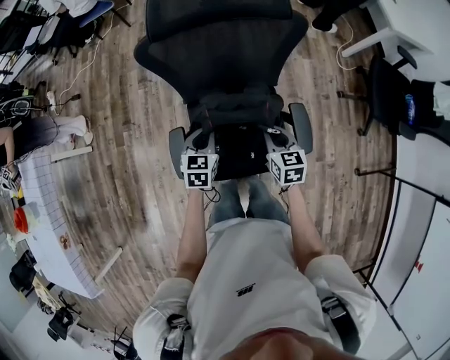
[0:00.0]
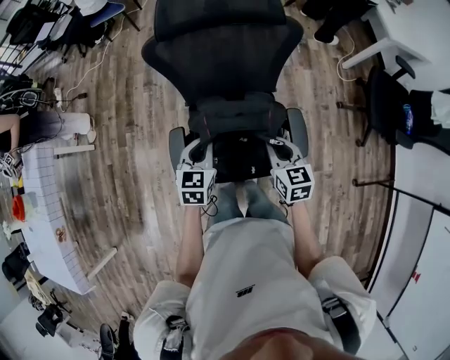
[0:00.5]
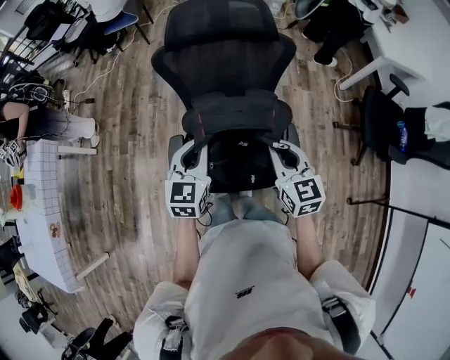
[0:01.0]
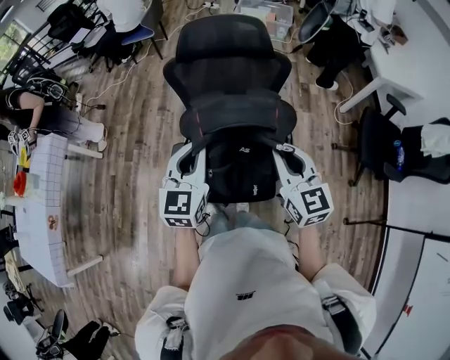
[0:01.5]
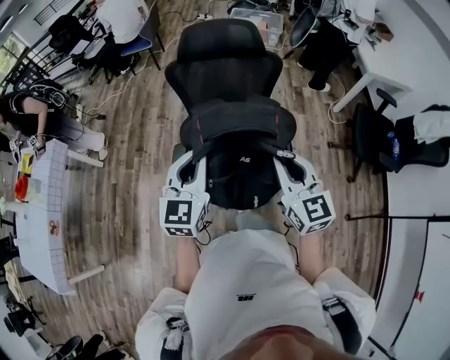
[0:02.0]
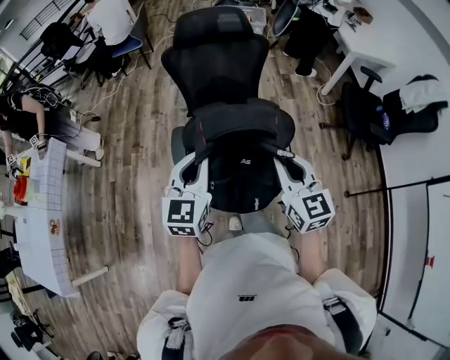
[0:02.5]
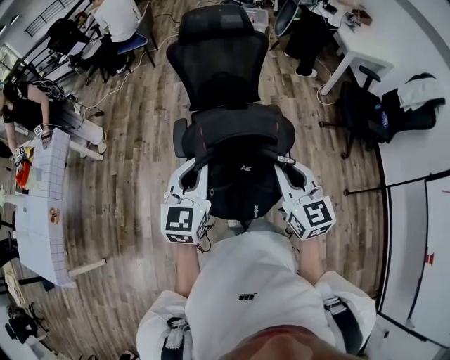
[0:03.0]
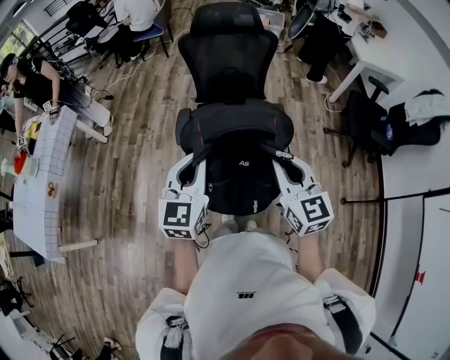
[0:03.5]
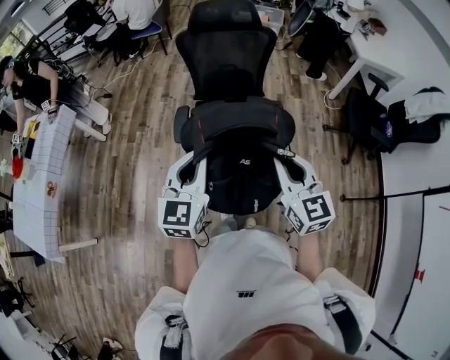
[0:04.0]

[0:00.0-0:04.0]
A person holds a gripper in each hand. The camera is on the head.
0:00.0 to 0:02.0: Both grippers travel together upward and backward, roughly 40 cm. The right gripper tilts its fingers about 30 degrees upward. Meanwhile the left gripper swivels some 30 degrees.
0:02.0 to 0:04.0: The two grippers go roughly 25 cm backward.

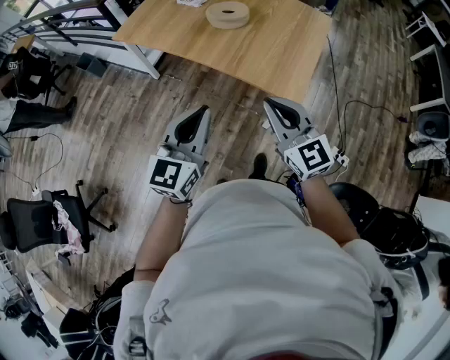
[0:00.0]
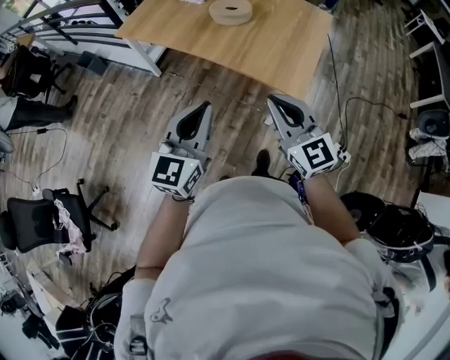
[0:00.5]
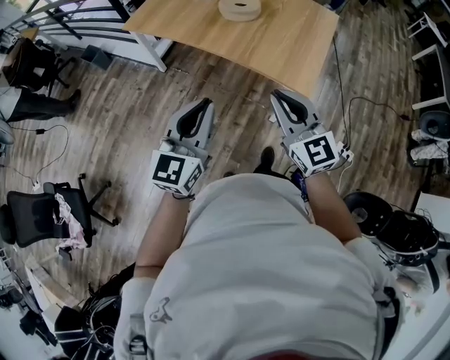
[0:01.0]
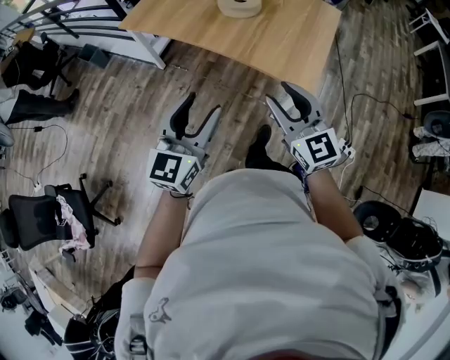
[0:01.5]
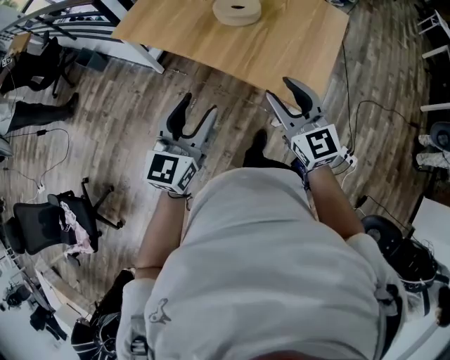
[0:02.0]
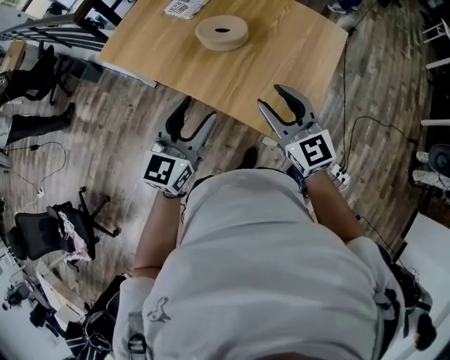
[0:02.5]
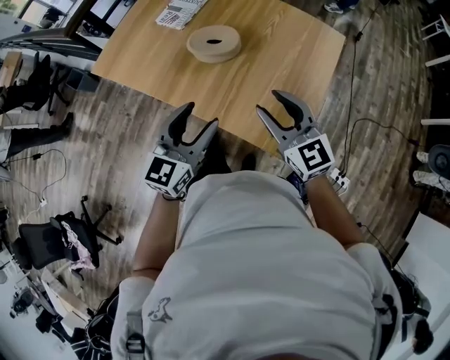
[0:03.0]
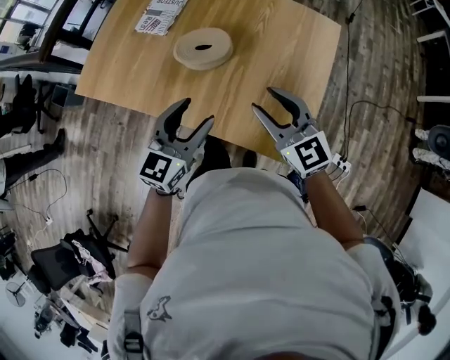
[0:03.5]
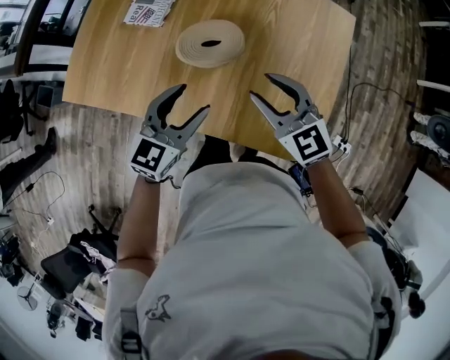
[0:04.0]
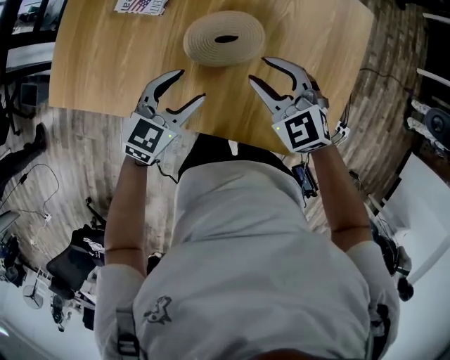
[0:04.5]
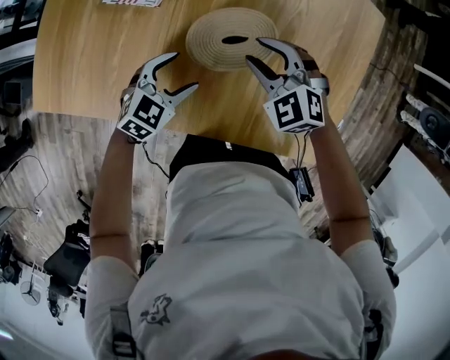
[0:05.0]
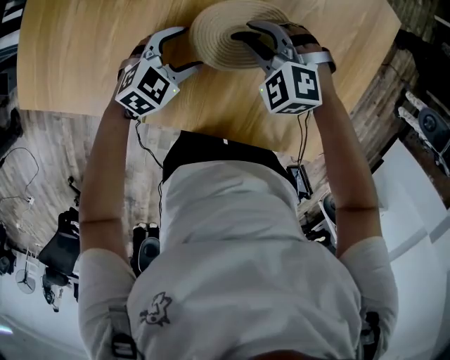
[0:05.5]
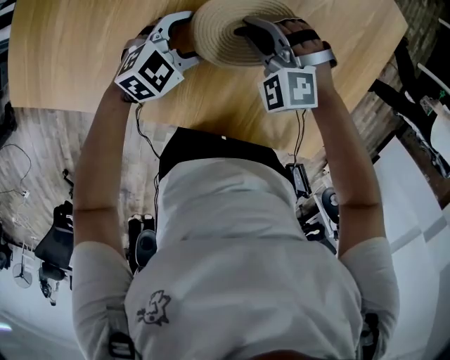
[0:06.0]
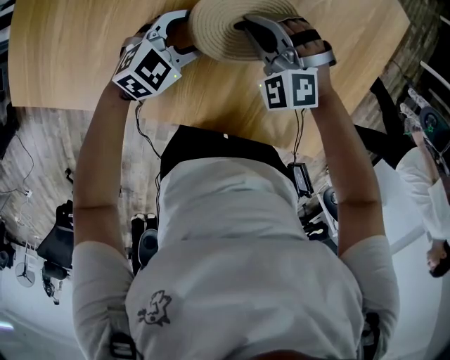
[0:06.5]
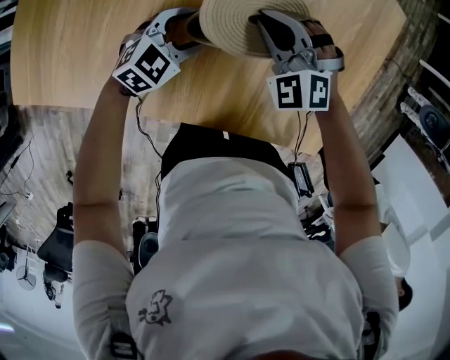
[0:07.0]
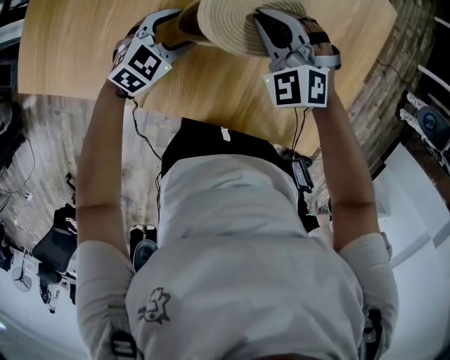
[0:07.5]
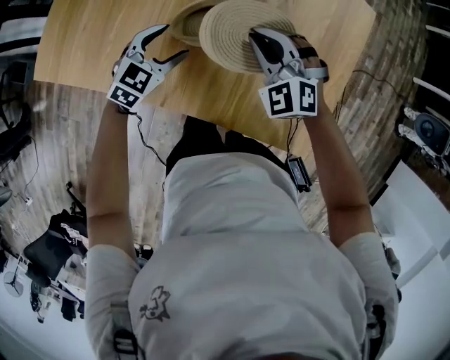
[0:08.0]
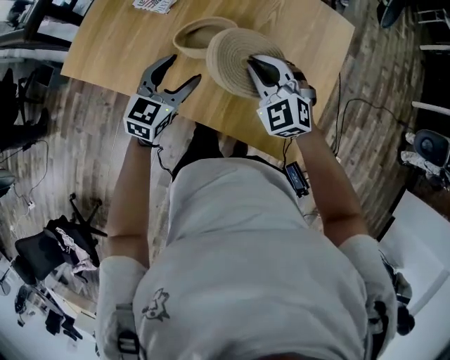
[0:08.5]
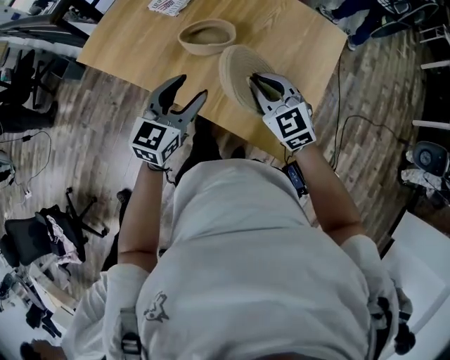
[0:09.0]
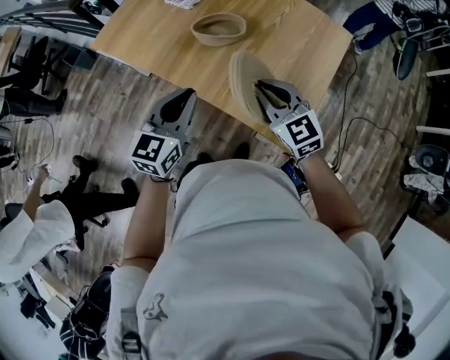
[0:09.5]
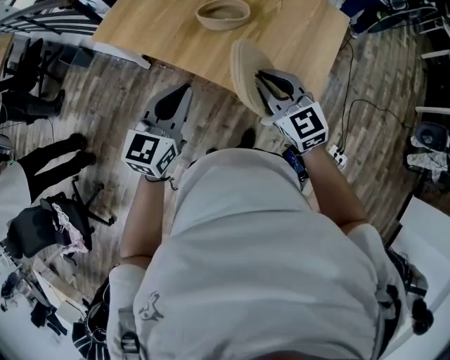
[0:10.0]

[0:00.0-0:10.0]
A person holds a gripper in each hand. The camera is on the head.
0:00.0 to 0:02.0: Both grippers travel together forward, approximately 10 cm. The right gripper opens, while the left gripper opens its fingers.
0:02.0 to 0:04.0: Both grippers move forward, some 35 cm. The left gripper changes its angle by some 30 degrees.
0:04.0 to 0:06.0: The left gripper shifts some 30 cm downward and forward, and turns by about 30 degrees; the right gripper heads downward, forward and to the left, covering some 30 cm, twists roughly 50 degrees counterclockwise, seen from behind, and closes its fingers.
0:06.0 to 0:08.0: The right gripper travels upward and to the right by approximately 15 cm, and rotates some 20 degrees, while the left gripper is displaced upward and backward by roughly 10 cm.
0:08.0 to 0:10.0: The grippers both shift backward and upward by about 40 cm. The right gripper changes its angle by about 40 degrees. Meanwhile the left gripper changes its angle by about 40 degrees, and closes up.

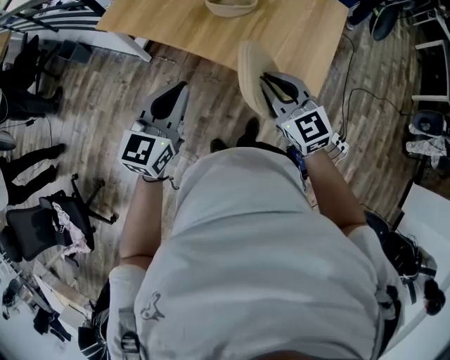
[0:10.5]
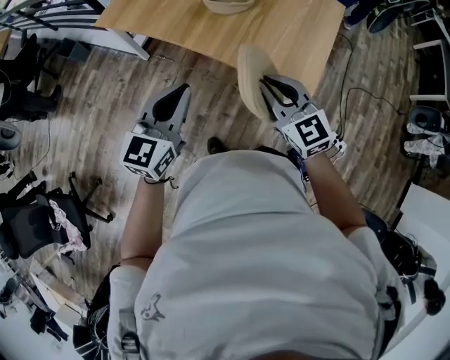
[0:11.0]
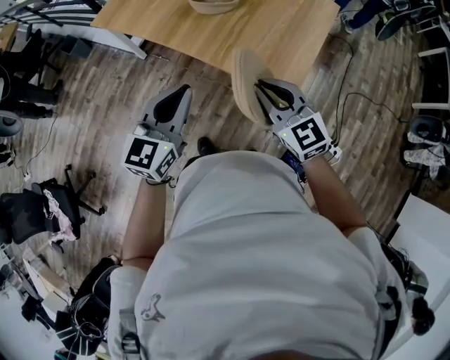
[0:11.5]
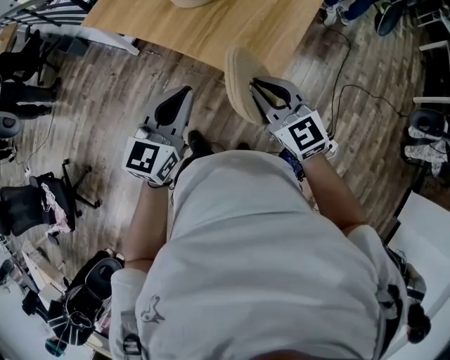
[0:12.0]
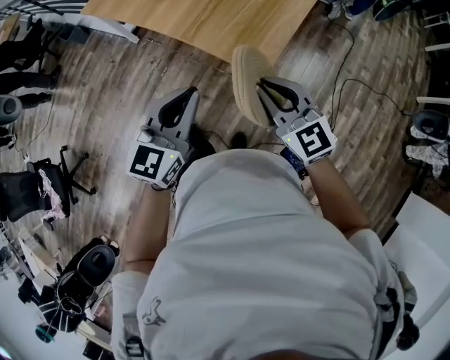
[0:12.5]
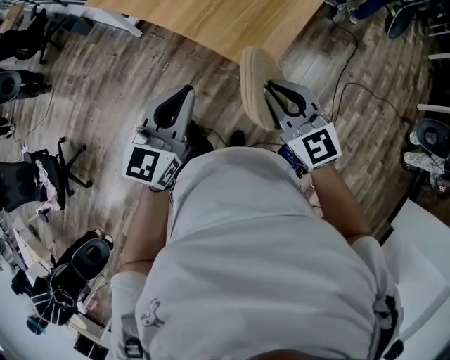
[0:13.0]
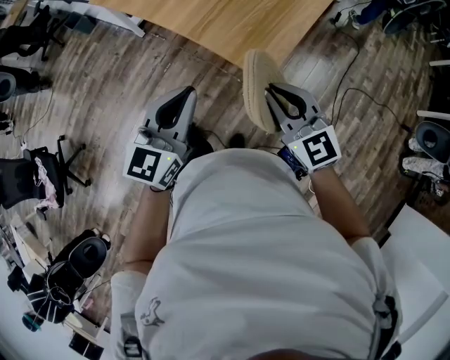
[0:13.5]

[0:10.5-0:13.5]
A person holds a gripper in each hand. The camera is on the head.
0:10.5 to 0:12.0: Both grippers move to the right and backward, approximately 25 cm.
0:12.0 to 0:13.5: The right gripper shifts about 10 cm backward and to the right, while the left gripper is displaced backward by roughly 5 cm.

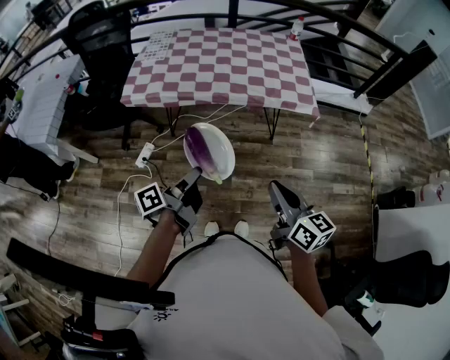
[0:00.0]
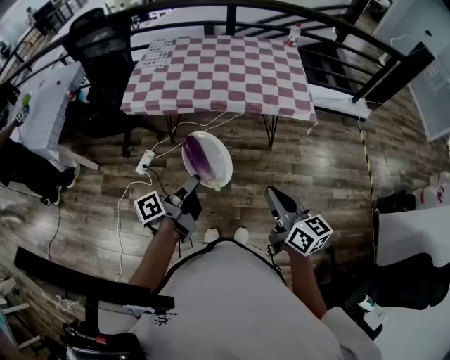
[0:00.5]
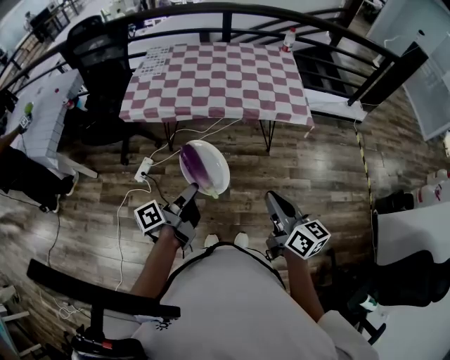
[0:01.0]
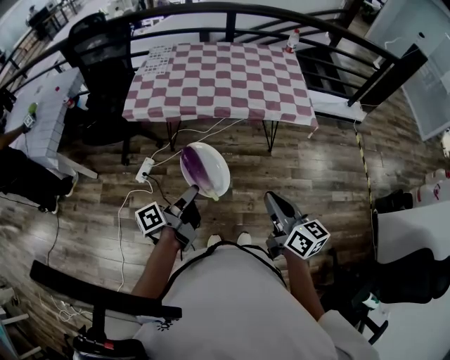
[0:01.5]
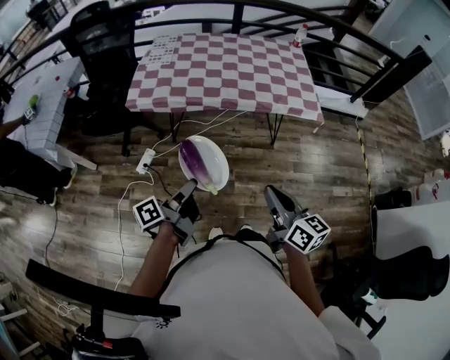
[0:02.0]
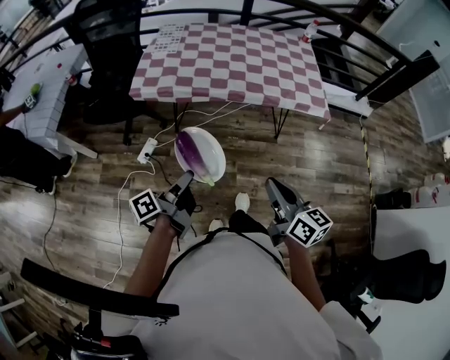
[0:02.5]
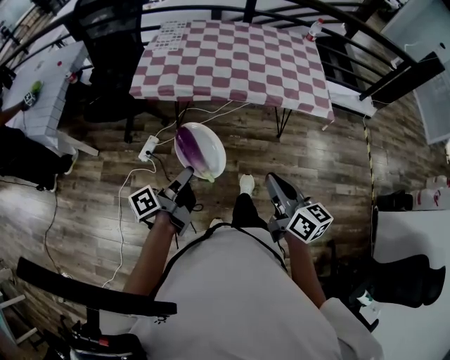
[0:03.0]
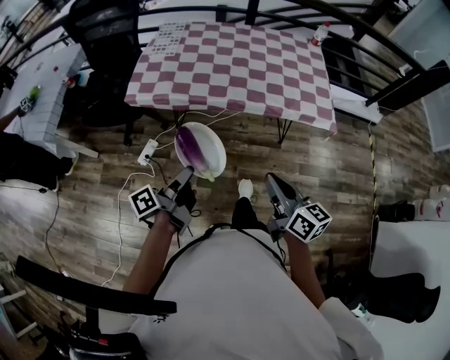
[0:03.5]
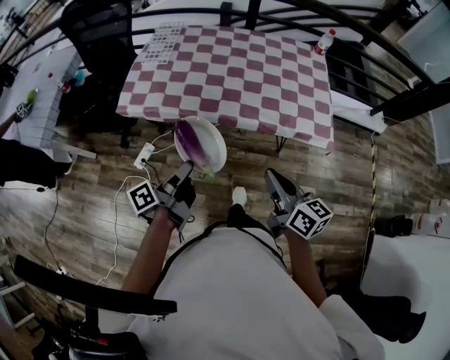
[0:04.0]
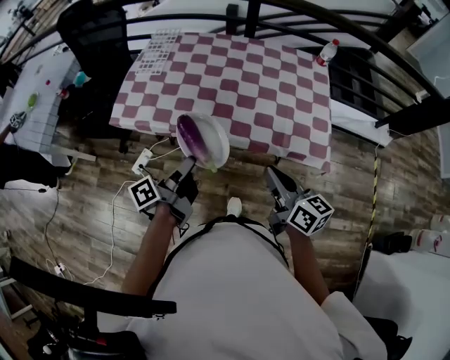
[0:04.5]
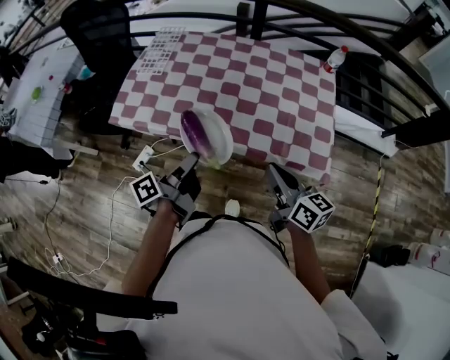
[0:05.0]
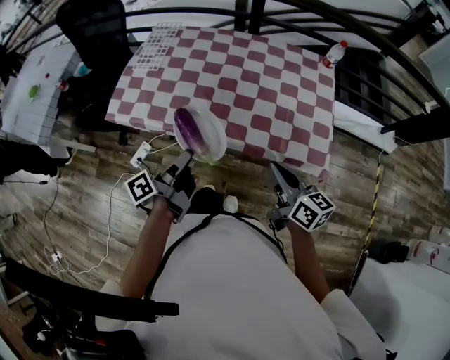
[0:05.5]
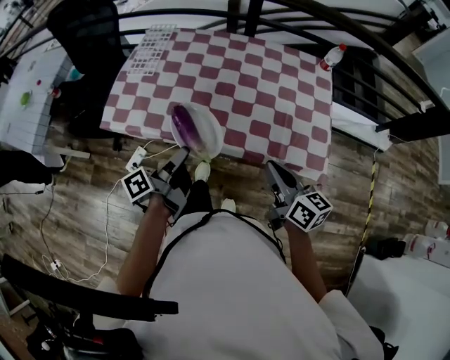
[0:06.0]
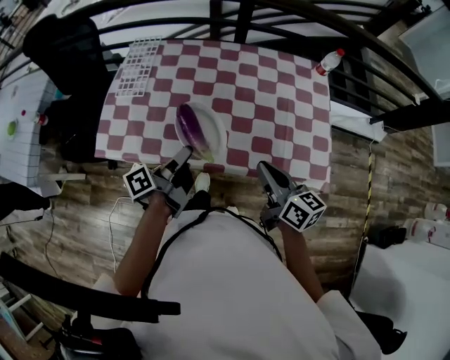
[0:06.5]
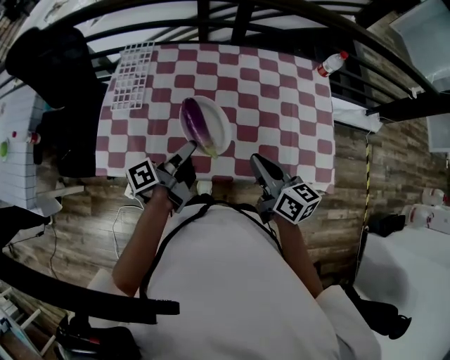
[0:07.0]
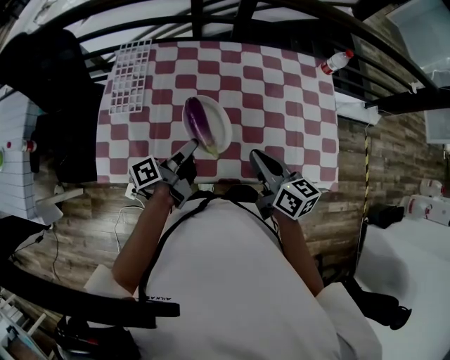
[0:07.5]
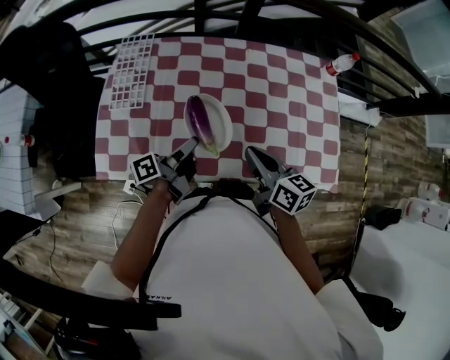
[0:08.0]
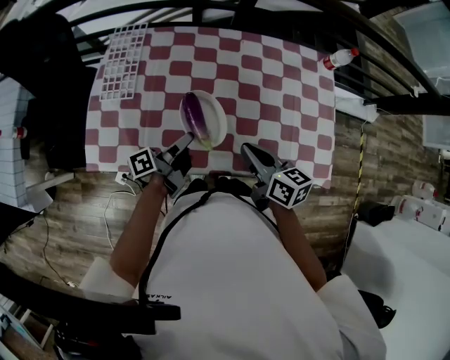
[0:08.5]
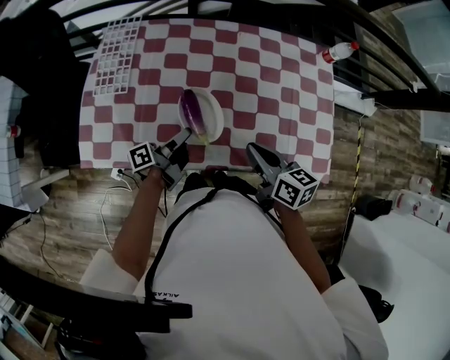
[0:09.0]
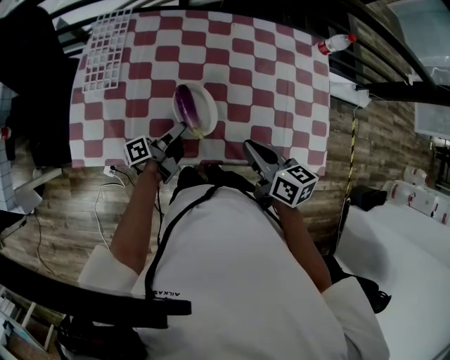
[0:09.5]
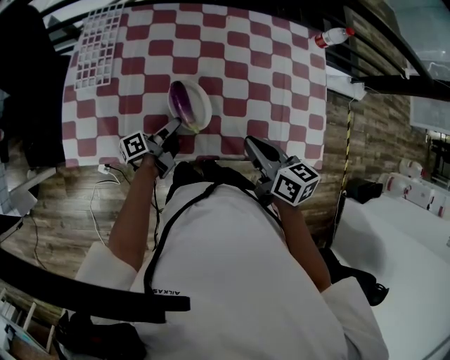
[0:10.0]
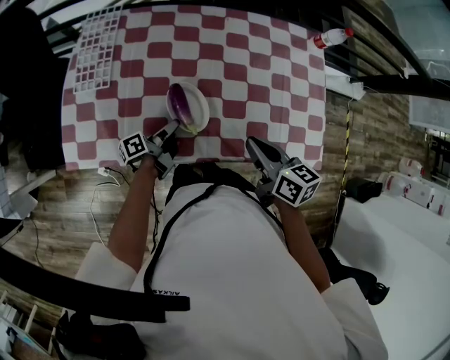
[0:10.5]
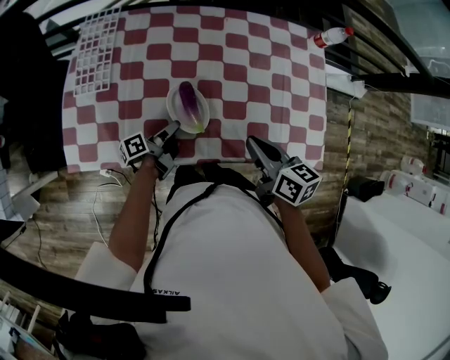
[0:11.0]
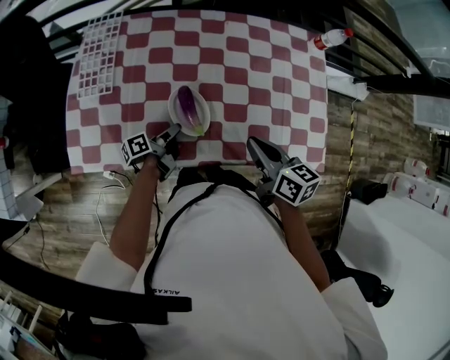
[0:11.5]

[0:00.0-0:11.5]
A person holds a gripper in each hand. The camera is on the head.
0:00.0 to 0:02.0: The right gripper changes place by roughly 10 cm.
0:02.0 to 0:04.0: The right gripper shifts by roughly 25 cm.
0:04.0 to 0:06.0: The right gripper changes place by about 20 cm.
0:06.0 to 0:07.5: The right gripper shifts by approximately 25 cm.
0:07.5 to 0:09.5: The right gripper shifts by roughly 5 cm.
